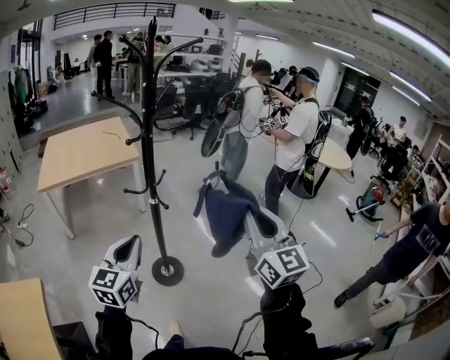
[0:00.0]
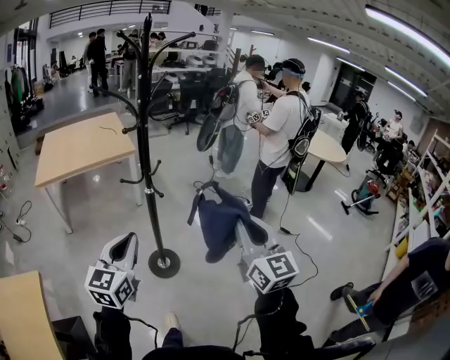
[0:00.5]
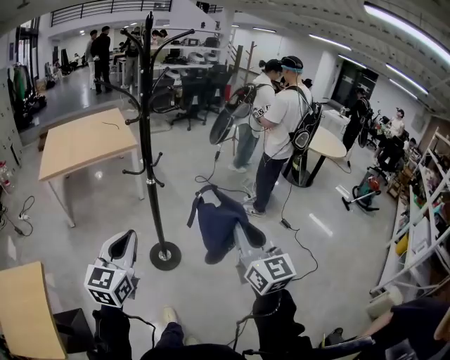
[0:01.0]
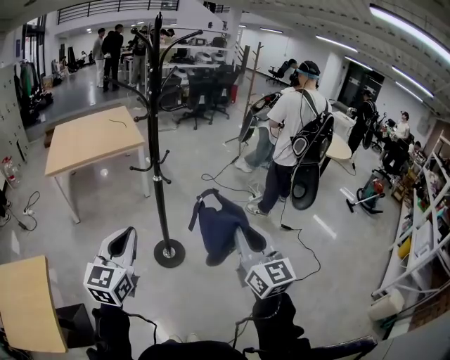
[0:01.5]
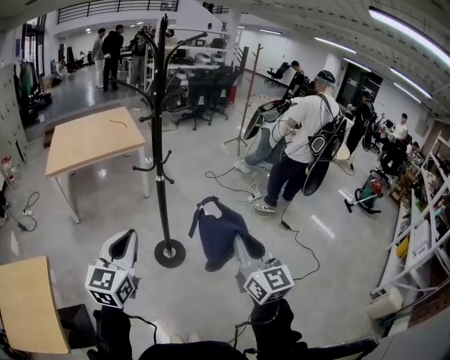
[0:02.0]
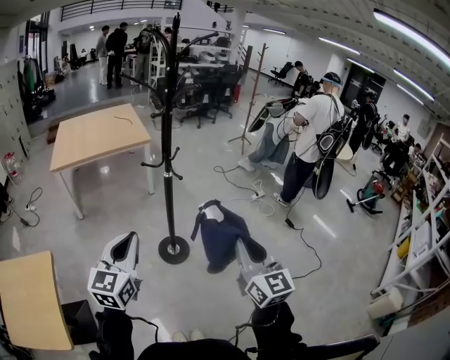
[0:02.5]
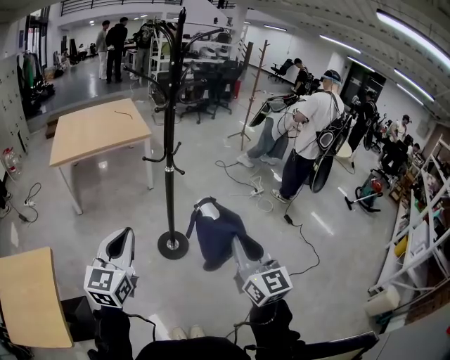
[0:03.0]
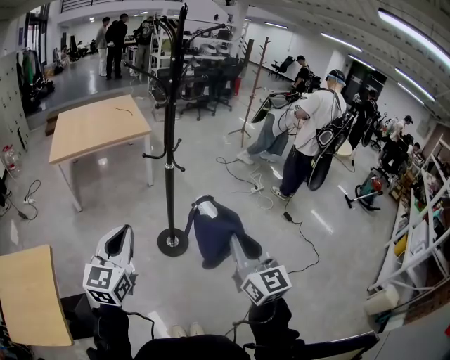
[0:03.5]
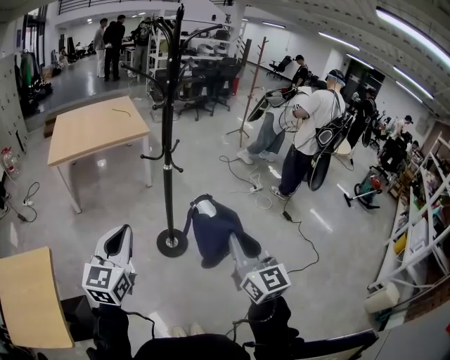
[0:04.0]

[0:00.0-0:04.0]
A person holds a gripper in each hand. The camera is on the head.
0:00.0 to 0:02.0: The left gripper heads backward, covering roughly 10 cm; the right gripper heads backward and downward, covering about 15 cm.
0:02.0 to 0:04.0: Both grippers travel together to the left, about 5 cm.

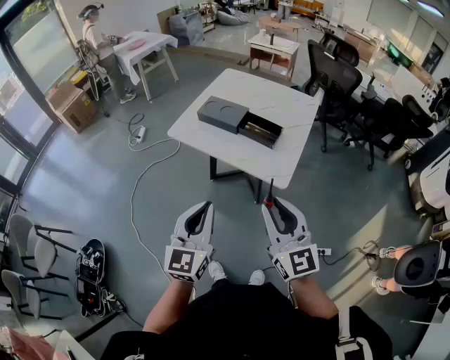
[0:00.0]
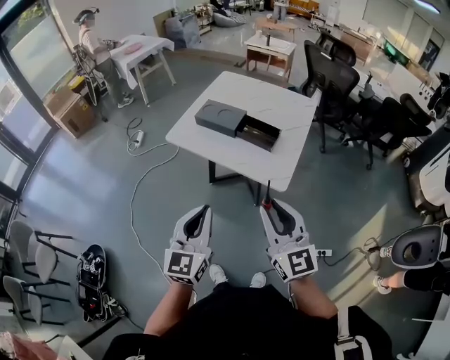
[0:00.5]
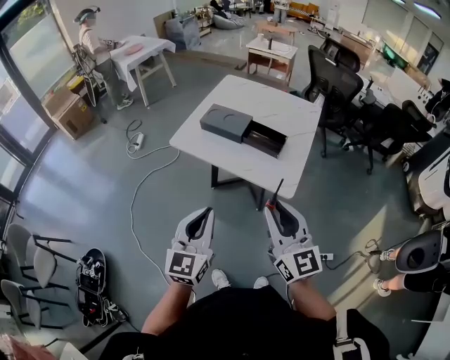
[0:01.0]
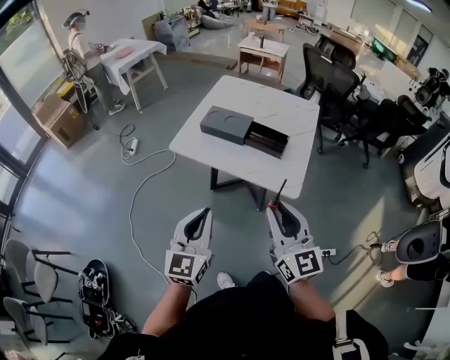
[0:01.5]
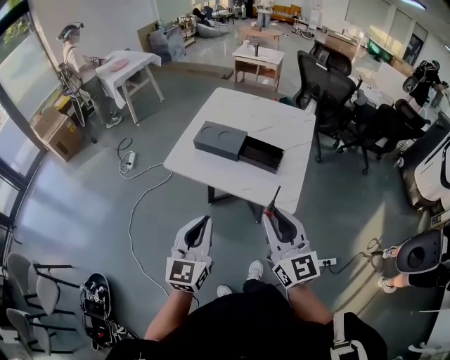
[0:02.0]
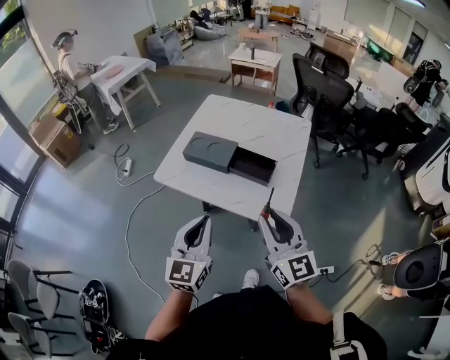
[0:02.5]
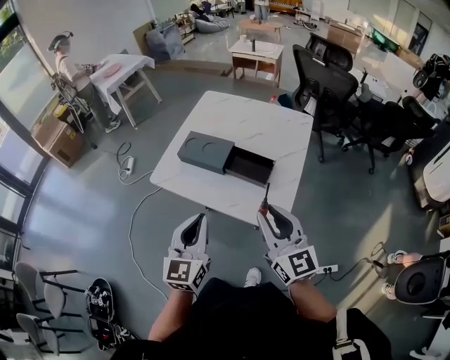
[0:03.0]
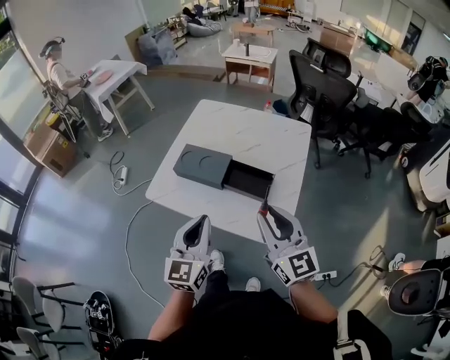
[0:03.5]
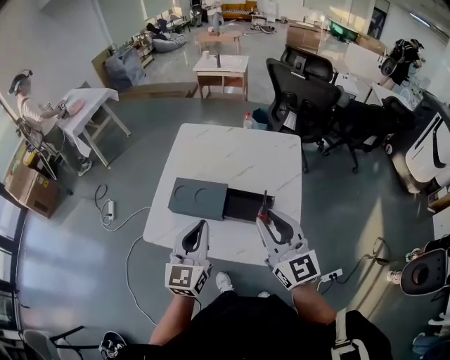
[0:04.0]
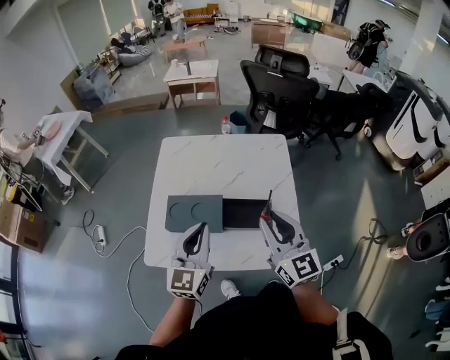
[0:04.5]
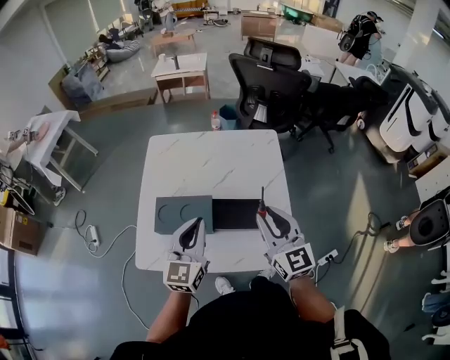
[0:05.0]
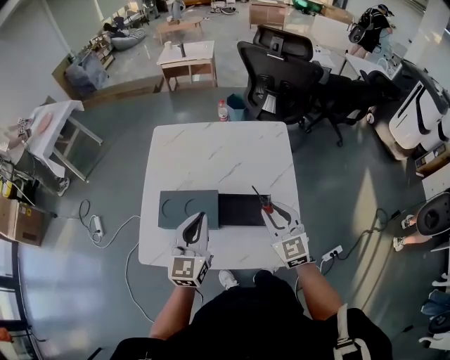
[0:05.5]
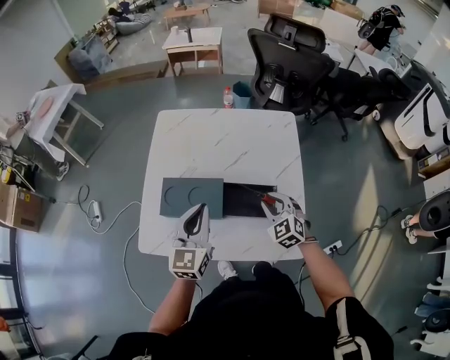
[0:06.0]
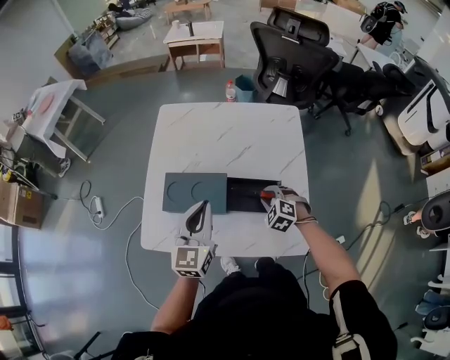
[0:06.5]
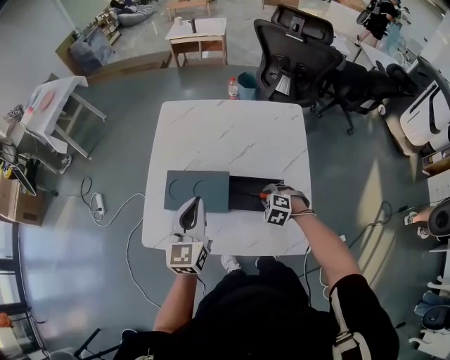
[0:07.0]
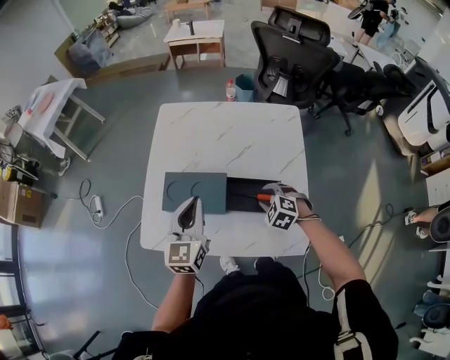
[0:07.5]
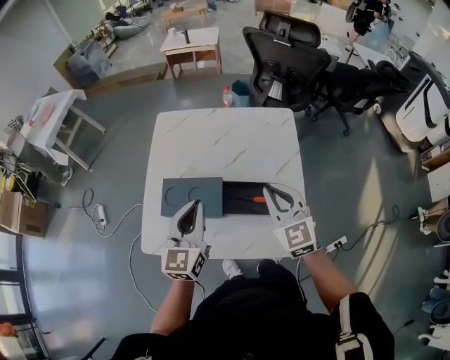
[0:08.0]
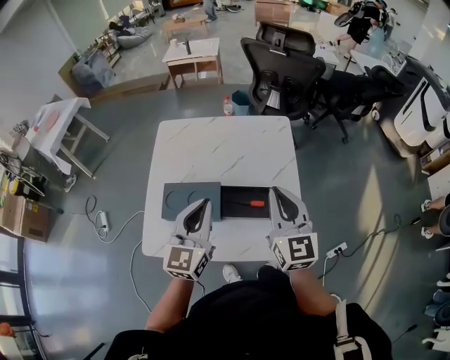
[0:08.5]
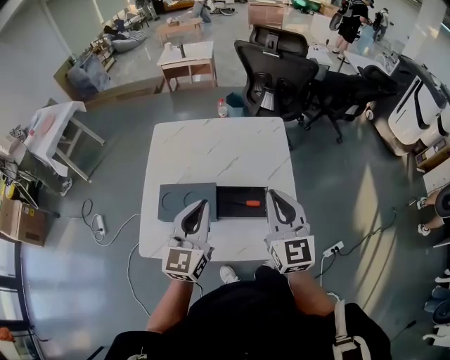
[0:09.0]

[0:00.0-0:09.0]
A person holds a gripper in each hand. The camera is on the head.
0:00.0 to 0:02.0: The right gripper moves forward, about 10 cm. Meanwhile the left gripper goes some 10 cm forward and to the left.
0:02.0 to 0:04.5: The two grippers go some 30 cm forward.
0:04.5 to 0:07.0: The left gripper shifts about 10 cm downward and forward. The right gripper is displaced downward by roughly 35 cm, and points its fingers roughly 70 degrees further downward.
0:07.0 to 0:09.0: The right gripper heads upward, covering some 35 cm, tilts its fingers roughly 60 degrees upward, and closes its fingers. The left gripper goes about 10 cm upward and to the right.

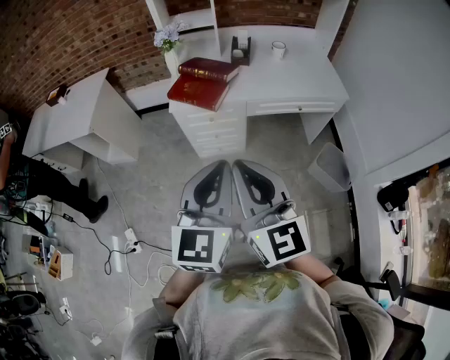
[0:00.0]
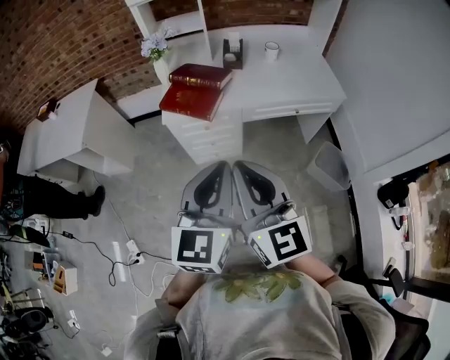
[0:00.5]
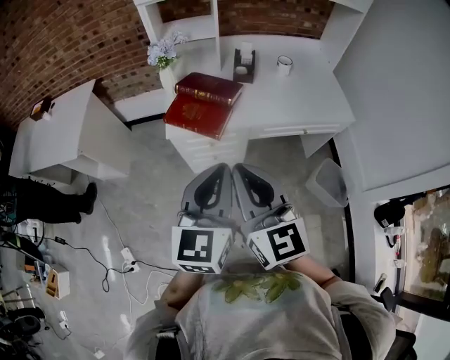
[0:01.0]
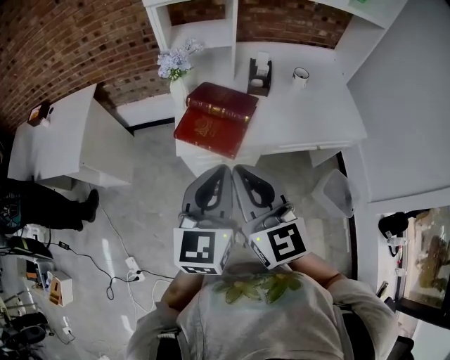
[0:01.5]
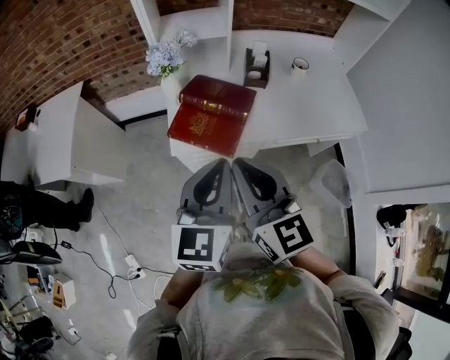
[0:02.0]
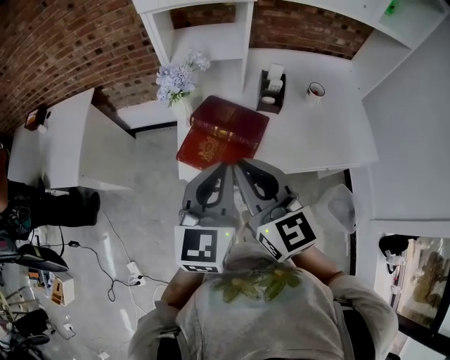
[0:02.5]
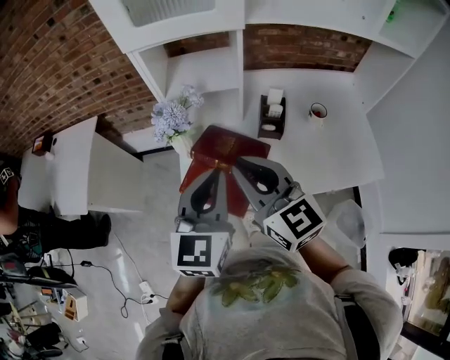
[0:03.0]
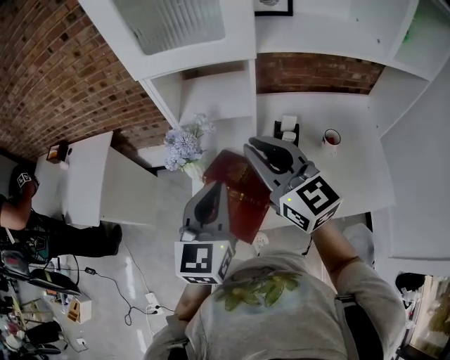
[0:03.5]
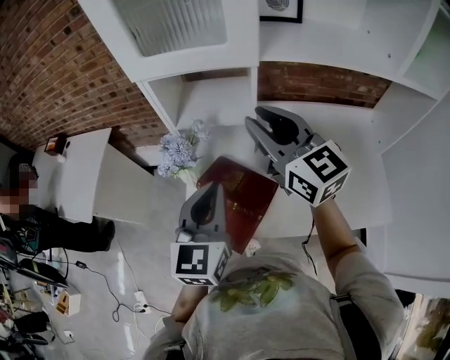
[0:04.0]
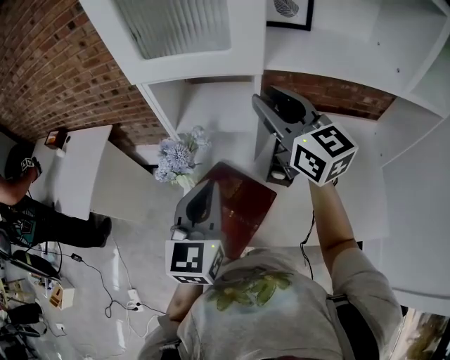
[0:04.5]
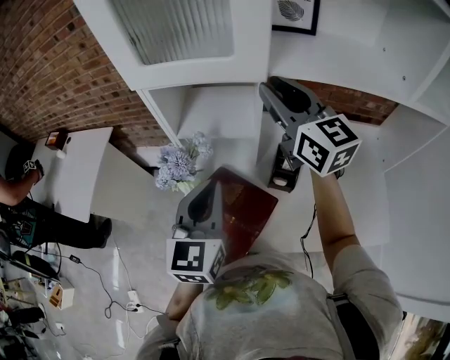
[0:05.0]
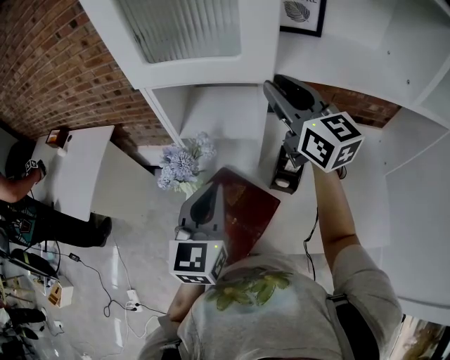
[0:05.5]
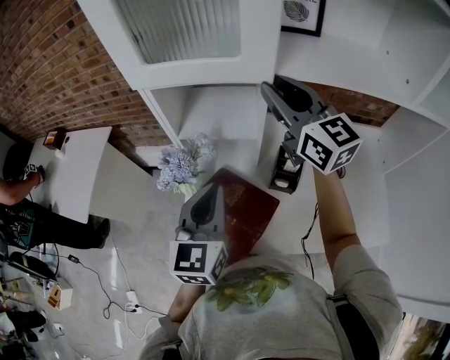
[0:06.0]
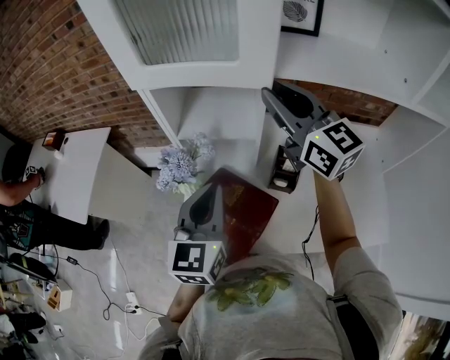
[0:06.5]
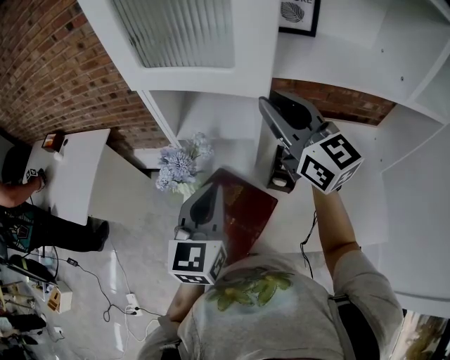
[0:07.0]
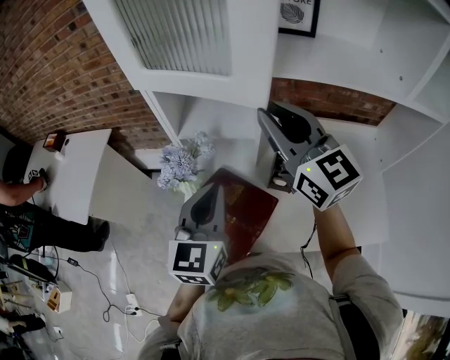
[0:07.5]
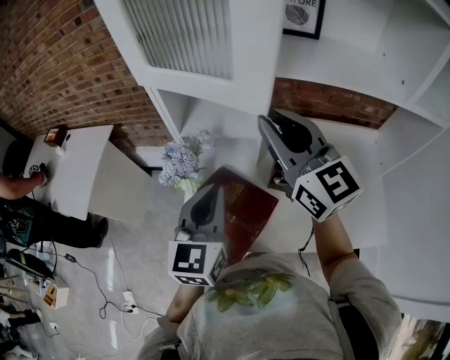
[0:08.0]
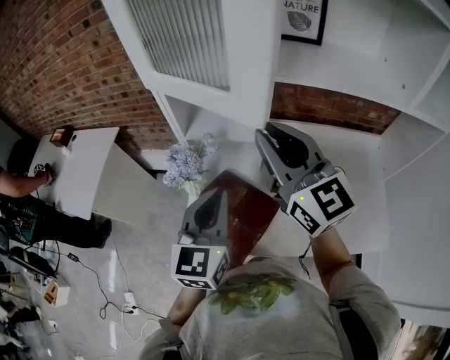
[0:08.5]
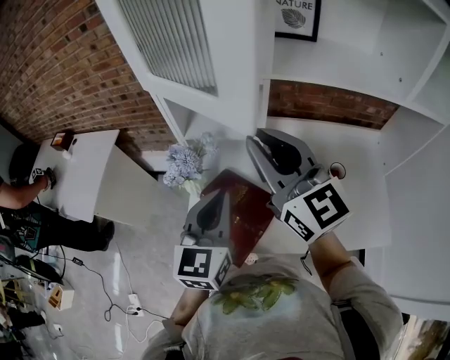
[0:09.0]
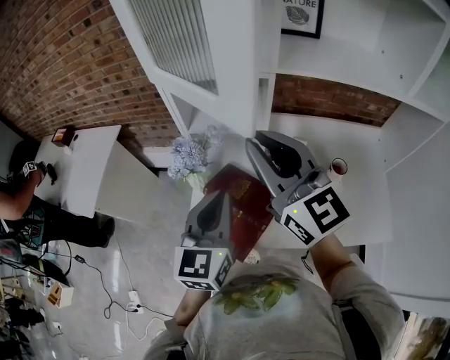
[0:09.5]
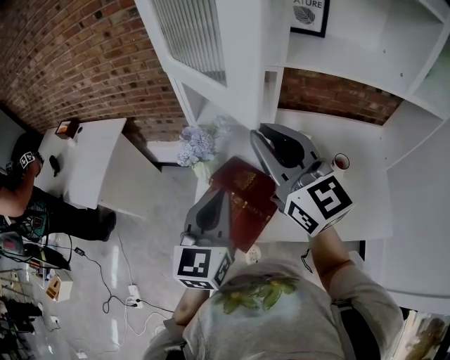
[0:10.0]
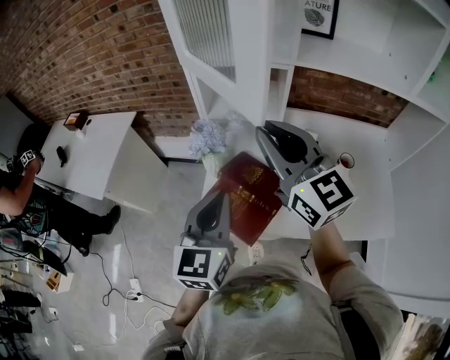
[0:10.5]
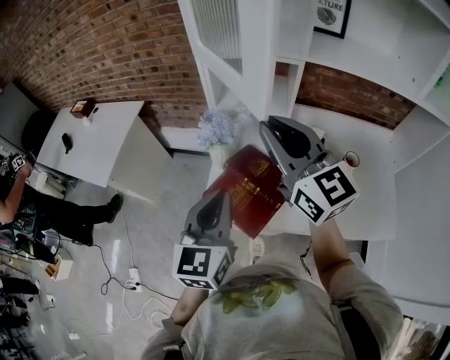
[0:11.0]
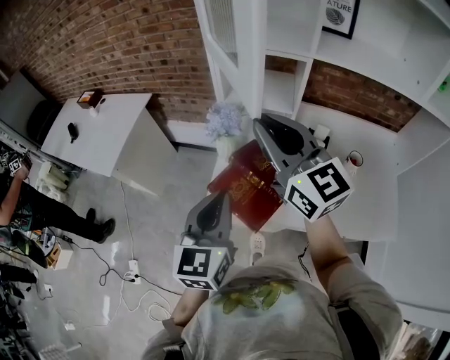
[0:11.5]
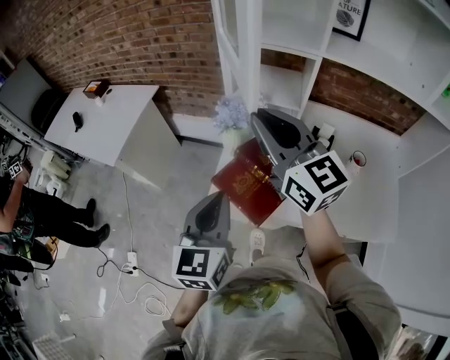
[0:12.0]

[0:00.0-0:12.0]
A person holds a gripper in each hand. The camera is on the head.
0:00.0 to 0:02.0: The grippers both shift forward by some 30 cm.
0:02.0 to 0:04.0: Both grippers move forward, some 30 cm. The right gripper turns by some 20 degrees.
0:04.0 to 0:06.0: The right gripper shifts about 10 cm forward, while the left gripper moves forward, roughly 5 cm.
0:06.0 to 0:08.0: The right gripper goes roughly 10 cm backward.
0:08.0 to 0:10.0: The right gripper shifts some 10 cm backward and to the left. Meanwhile the left gripper travels backward by some 5 cm.
0:10.0 to 0:12.0: The right gripper is displaced to the left by about 10 cm. The left gripper is displaced backward and to the left by roughly 15 cm.

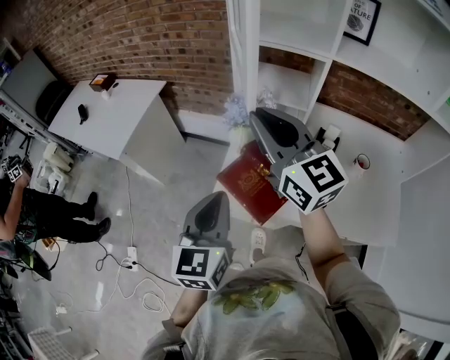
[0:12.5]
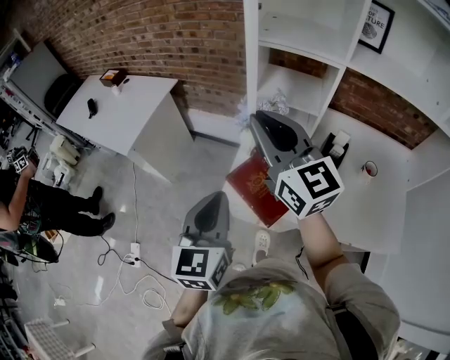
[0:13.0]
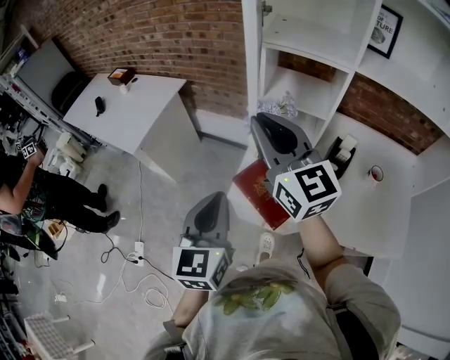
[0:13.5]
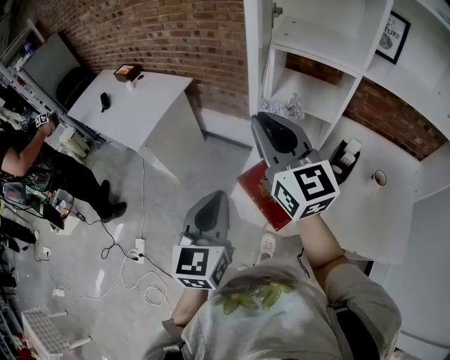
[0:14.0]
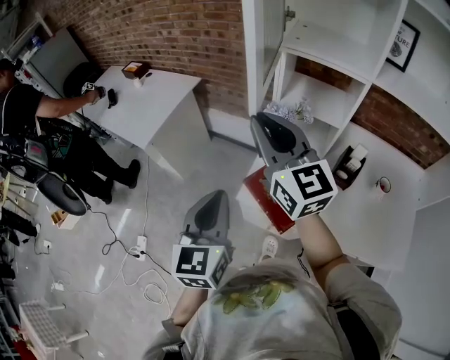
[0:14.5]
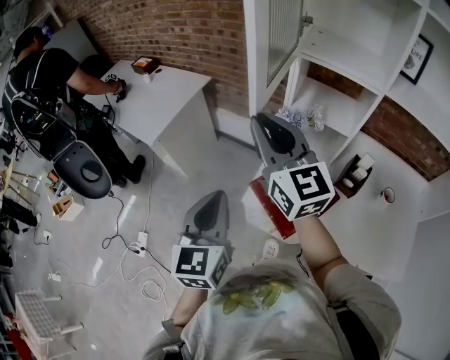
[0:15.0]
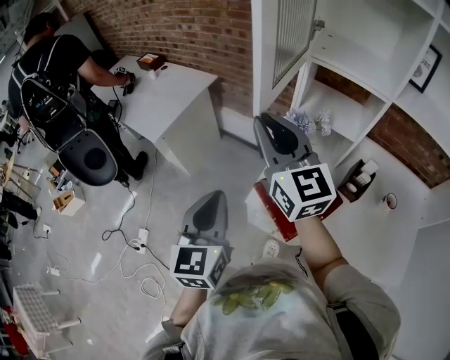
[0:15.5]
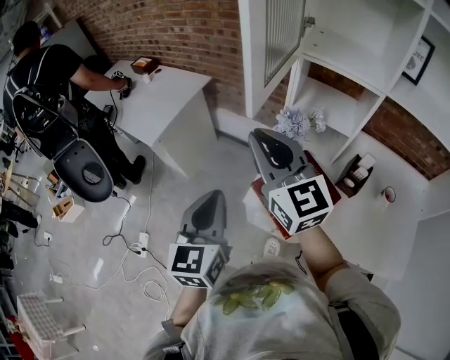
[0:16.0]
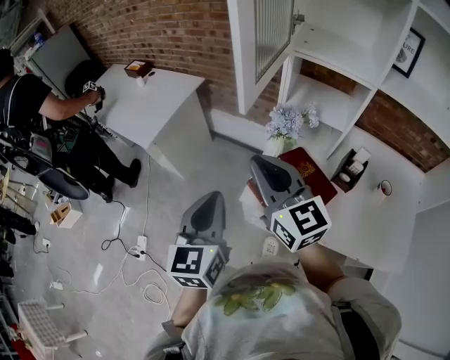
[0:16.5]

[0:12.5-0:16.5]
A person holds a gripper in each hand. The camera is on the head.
0:12.5 to 0:14.5: Both grippers travel together to the left, some 10 cm.
0:14.5 to 0:16.5: The right gripper moves downward, approximately 5 cm.
